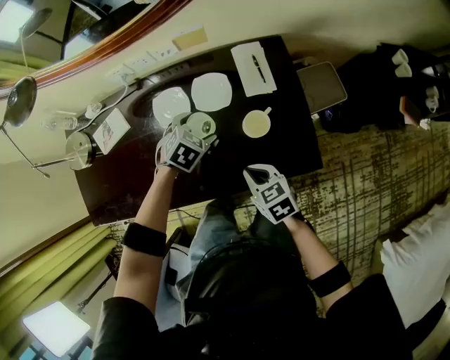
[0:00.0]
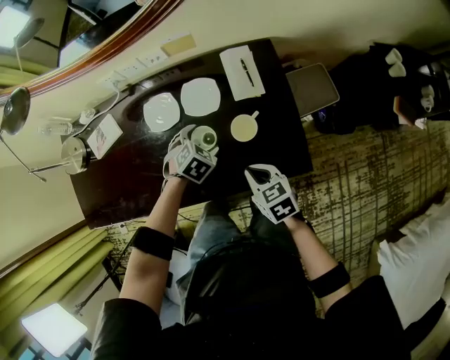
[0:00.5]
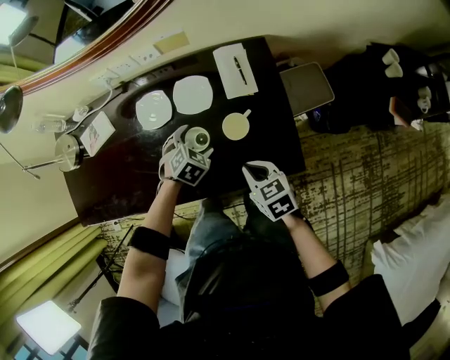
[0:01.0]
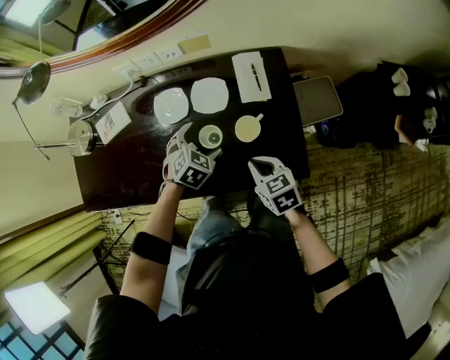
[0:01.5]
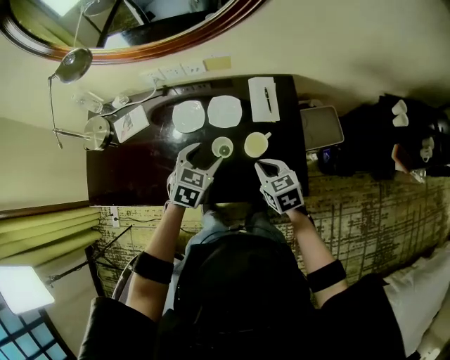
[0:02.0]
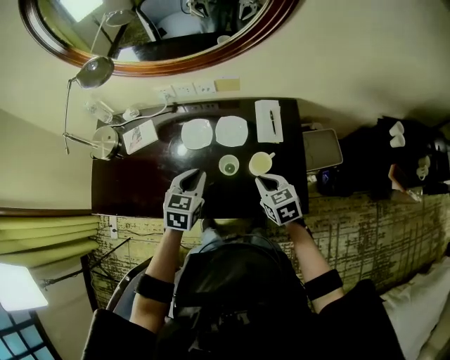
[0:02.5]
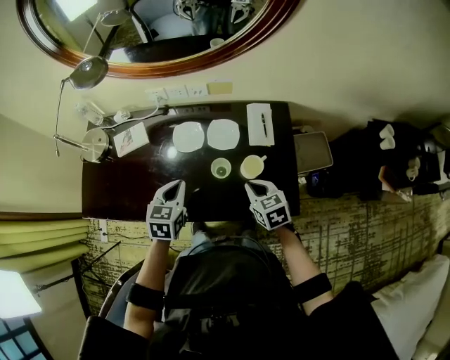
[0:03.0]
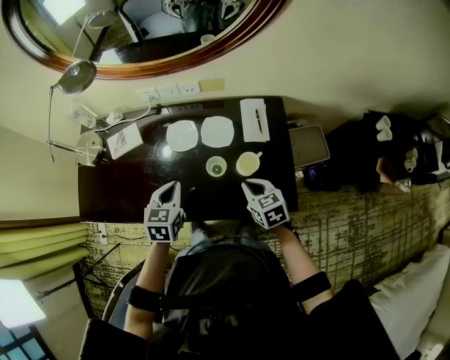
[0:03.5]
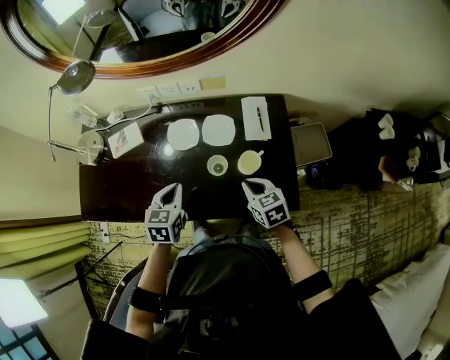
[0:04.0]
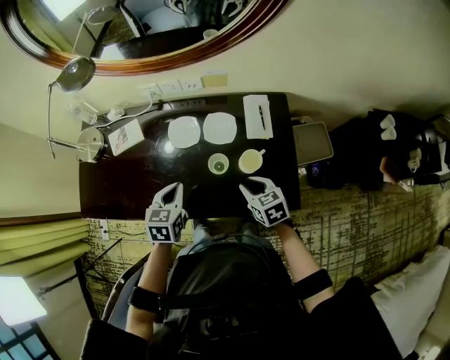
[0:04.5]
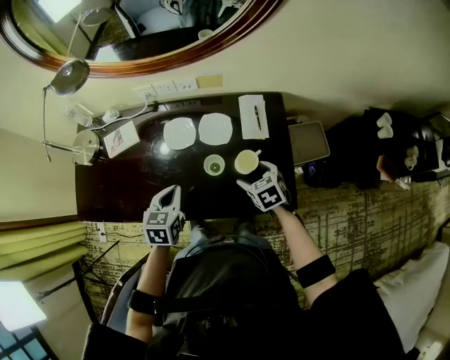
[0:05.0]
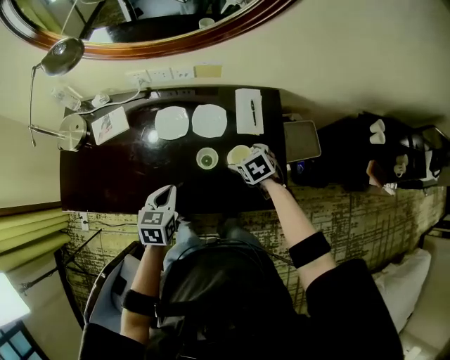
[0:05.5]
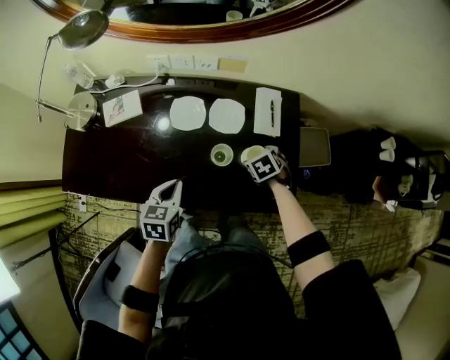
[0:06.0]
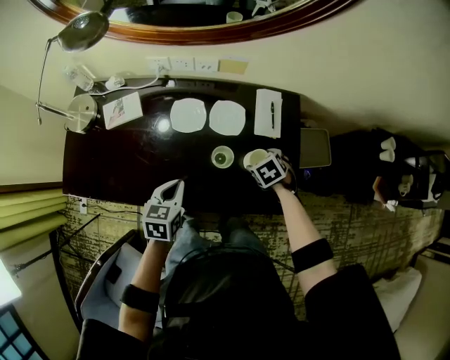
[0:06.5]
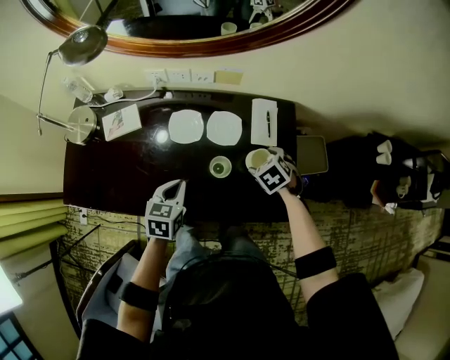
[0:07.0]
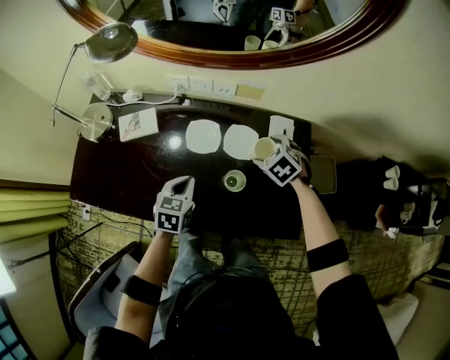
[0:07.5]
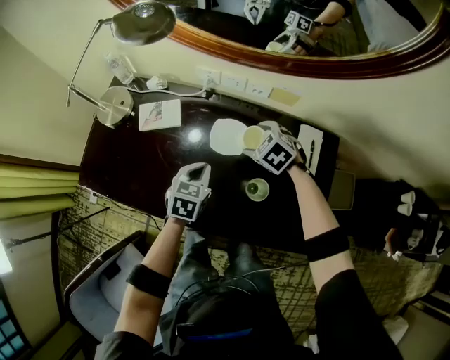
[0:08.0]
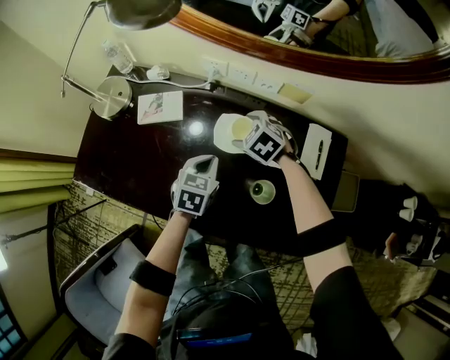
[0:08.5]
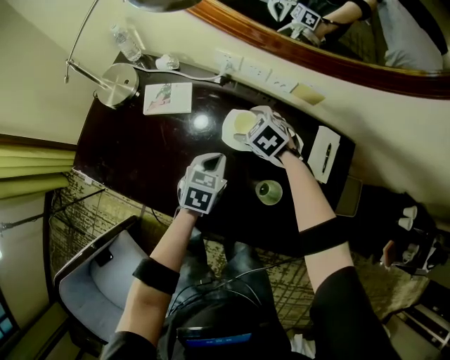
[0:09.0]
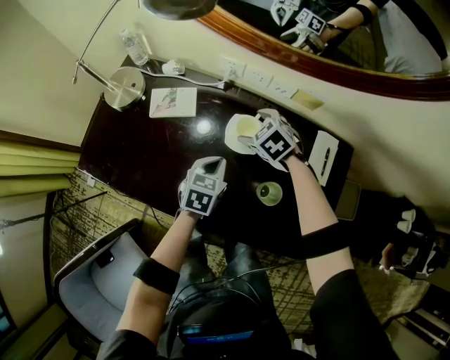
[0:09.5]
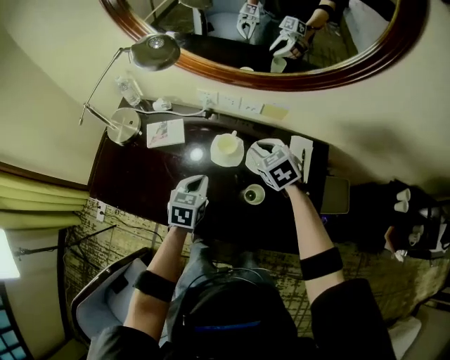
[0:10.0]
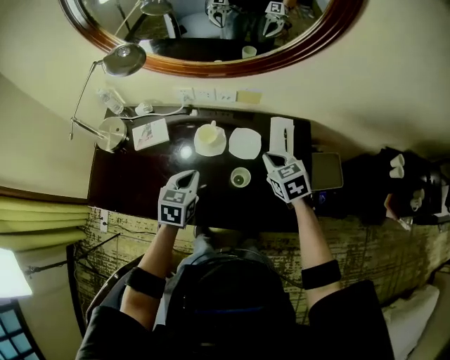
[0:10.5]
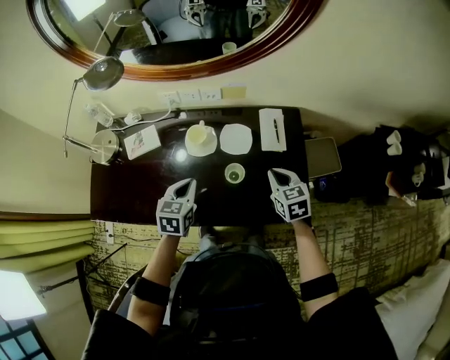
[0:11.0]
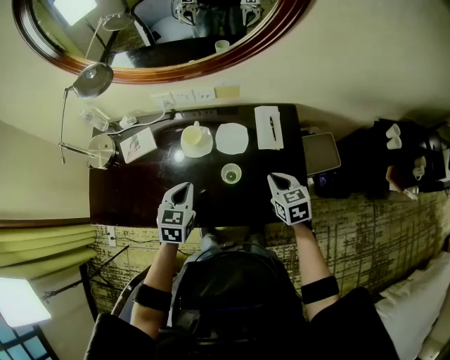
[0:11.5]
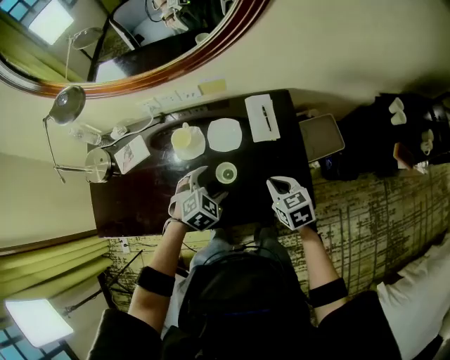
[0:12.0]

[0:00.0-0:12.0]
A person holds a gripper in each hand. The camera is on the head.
0:00.0 to 0:02.0: The right gripper goes some 10 cm to the right and upward; the left gripper travels upward and backward by about 15 cm, and turns by approximately 30 degrees.
0:02.0 to 0:04.0: The left gripper heads to the left, covering roughly 10 cm, turns by approximately 20 degrees, and closes its fingers.
0:04.0 to 0:06.0: The right gripper shifts about 10 cm downward, points its fingers some 30 degrees further downward, and opens its fingers. The left gripper ends up about 5 cm from where it was.
0:06.0 to 0:08.0: The left gripper shifts by some 15 cm; the right gripper changes place by about 25 cm, and rotates some 40 degrees.
0:08.0 to 0:10.0: The right gripper goes roughly 10 cm upward, swivels approximately 20 degrees, and closes. The left gripper moves about 5 cm.
0:10.0 to 0:12.0: The right gripper moves backward and to the right, some 25 cm, and turns by about 30 degrees. The left gripper heads to the right, covering some 15 cm, rolls clockwise, seen from behind, by about 50 degrees, and opens.

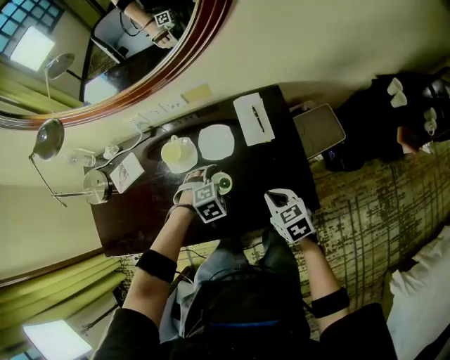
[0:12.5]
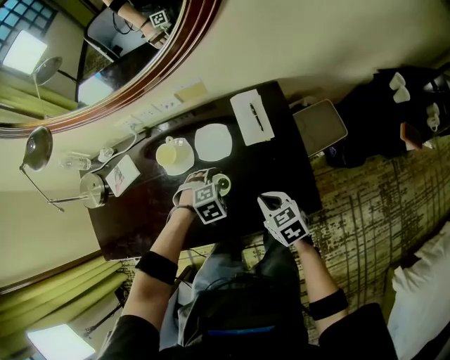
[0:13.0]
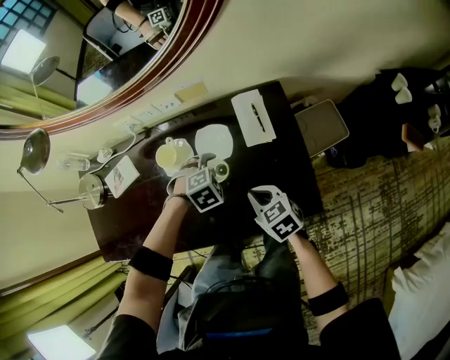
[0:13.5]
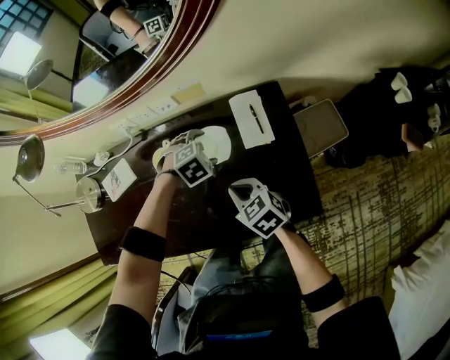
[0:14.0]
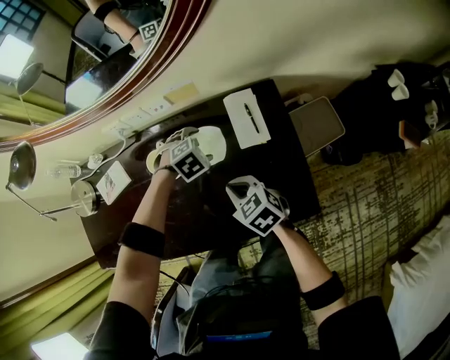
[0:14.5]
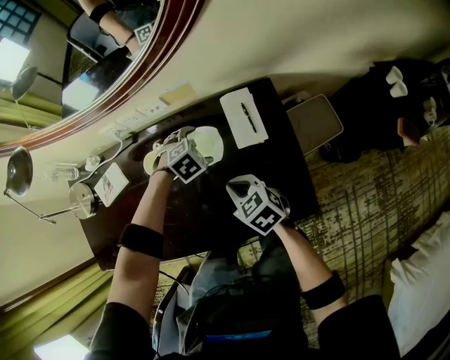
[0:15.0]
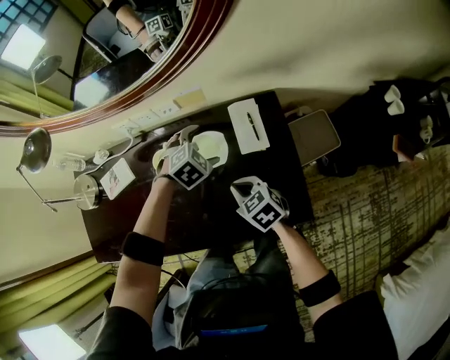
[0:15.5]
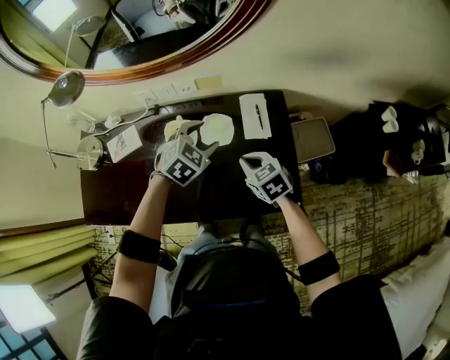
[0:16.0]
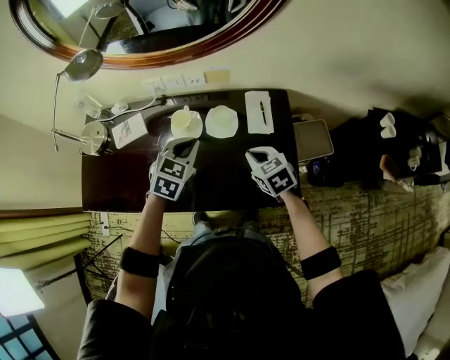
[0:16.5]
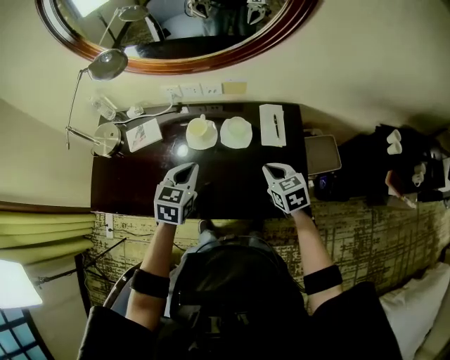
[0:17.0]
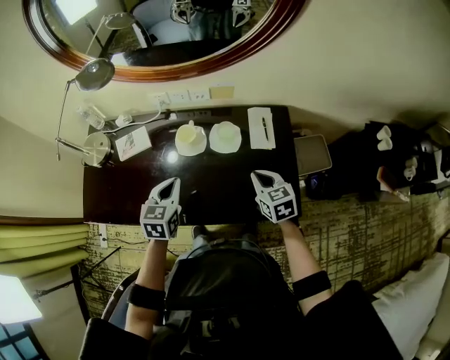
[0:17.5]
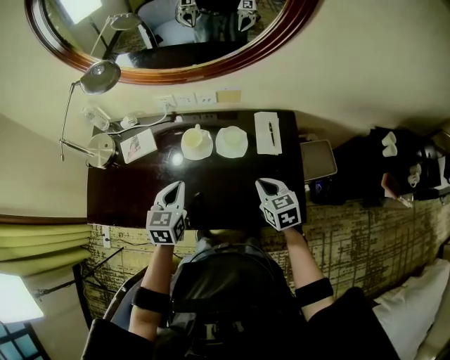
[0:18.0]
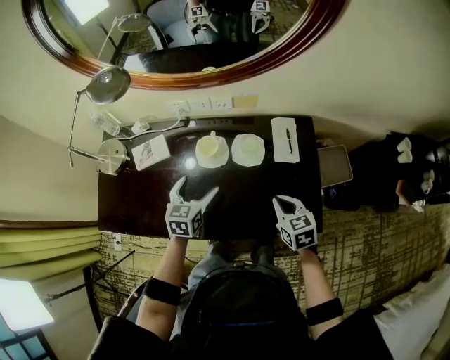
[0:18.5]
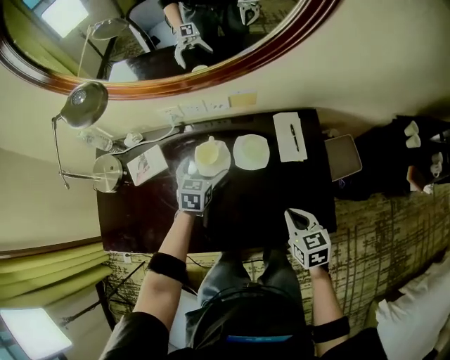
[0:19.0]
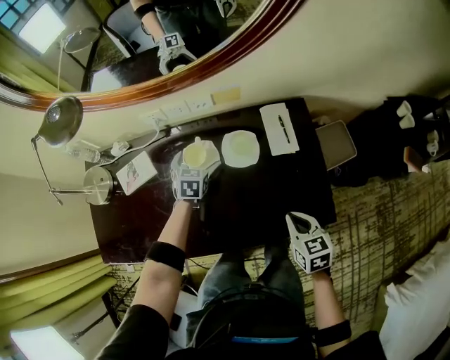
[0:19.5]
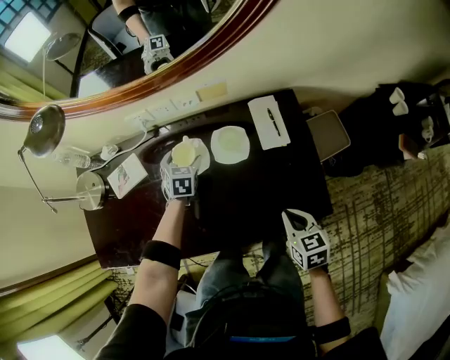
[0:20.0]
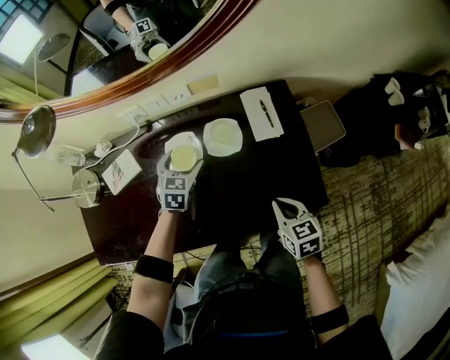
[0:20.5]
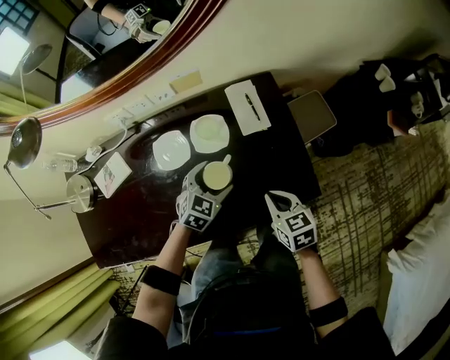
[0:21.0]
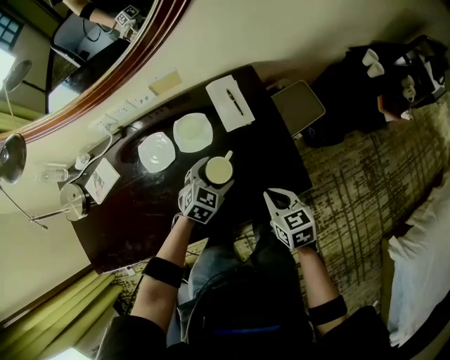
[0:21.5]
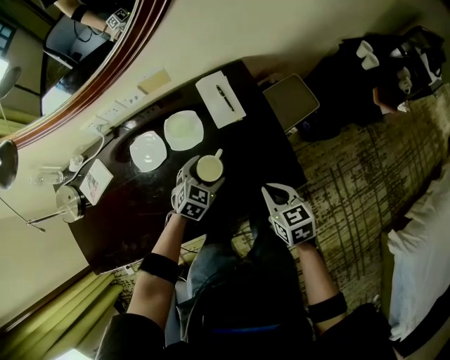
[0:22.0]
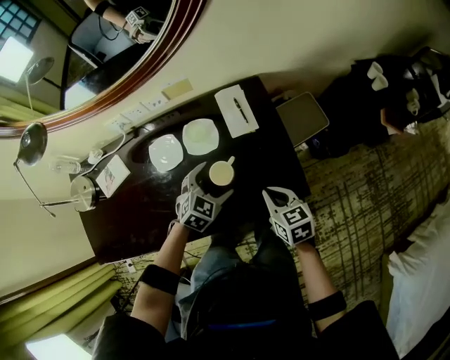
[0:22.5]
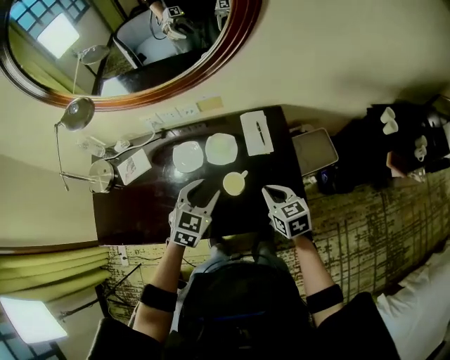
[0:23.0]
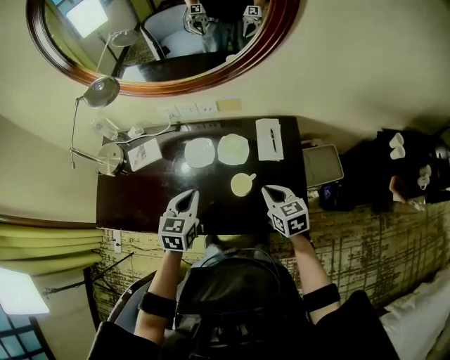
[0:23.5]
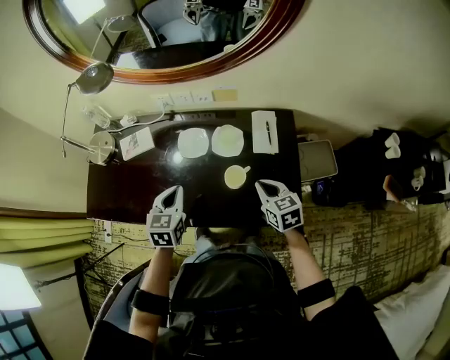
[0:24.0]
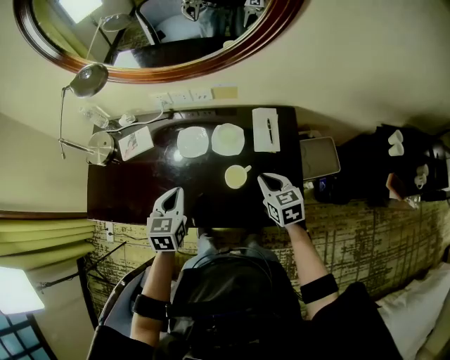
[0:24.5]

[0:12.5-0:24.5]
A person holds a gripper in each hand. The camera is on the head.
0:12.5 to 0:14.5: The left gripper shifts by about 15 cm, while the right gripper moves roughly 10 cm.
0:14.5 to 0:16.5: The left gripper goes some 25 cm upward and backward, points its fingers some 40 degrees further upward, and closes up. The right gripper is displaced upward by approximately 5 cm.
0:16.5 to 0:18.5: The left gripper heads to the left and downward, covering approximately 15 cm, changes its angle by some 30 degrees, and opens up.
0:18.5 to 0:20.5: The right gripper ends up some 5 cm from where it was. The left gripper is displaced forward, downward and to the right by roughly 15 cm, and turns by roughly 20 degrees.
0:20.5 to 0:22.5: The right gripper is displaced to the right by about 5 cm. The left gripper travels to the right and backward by some 20 cm, and swivels some 30 degrees.
0:22.5 to 0:24.5: The right gripper shifts by about 10 cm, while the left gripper shifts by roughly 20 cm, changes its angle by approximately 50 degrees, and closes.

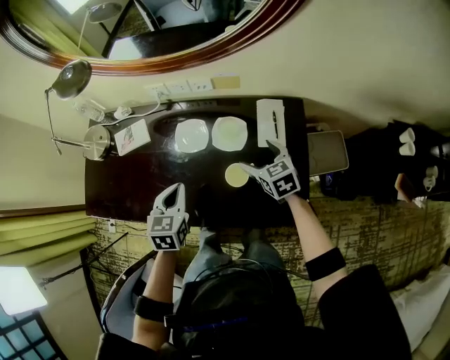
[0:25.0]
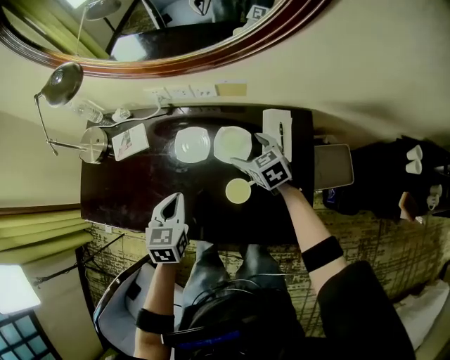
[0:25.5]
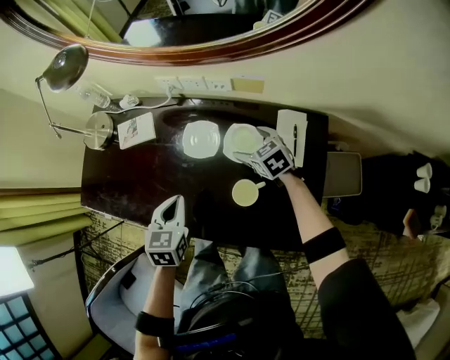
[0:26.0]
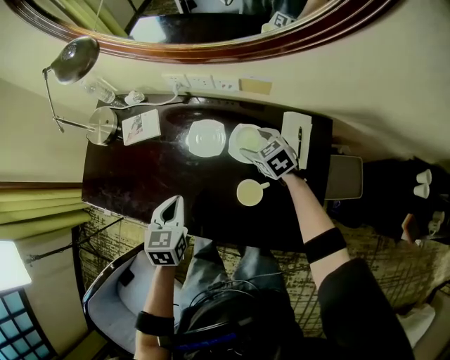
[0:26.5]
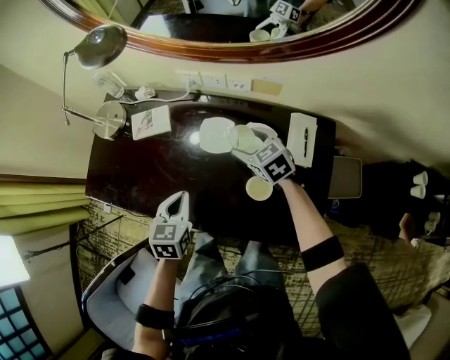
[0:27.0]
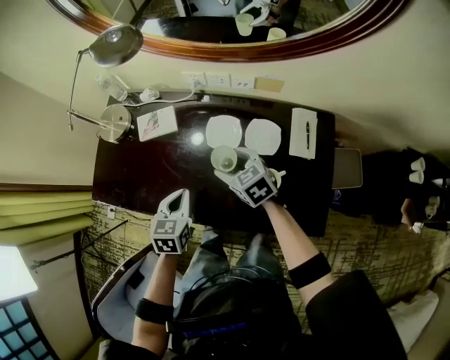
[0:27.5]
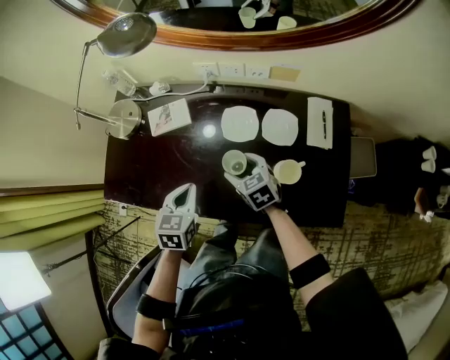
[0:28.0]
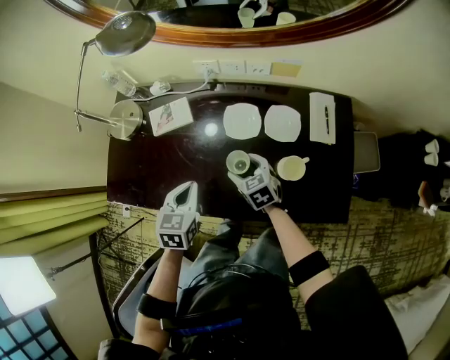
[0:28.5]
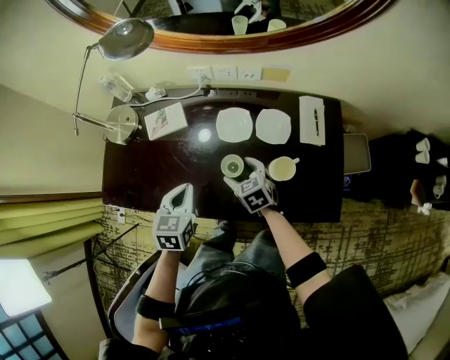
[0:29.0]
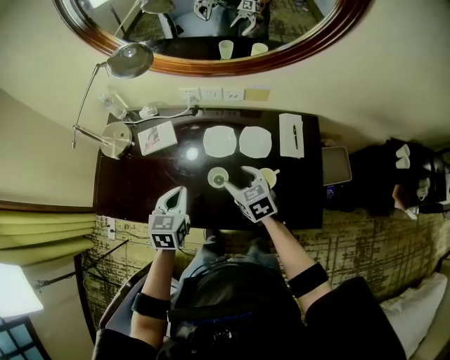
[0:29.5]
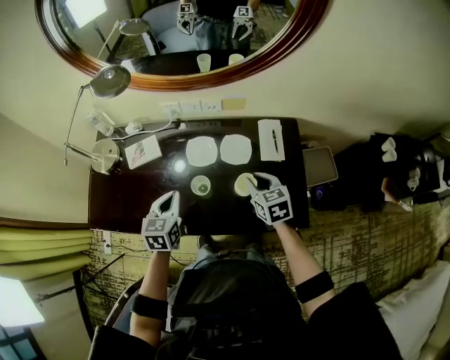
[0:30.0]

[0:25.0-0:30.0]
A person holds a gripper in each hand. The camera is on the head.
0:25.0 to 0:27.5: The right gripper heads to the left, covering some 20 cm. The left gripper moves to the left, approximately 10 cm.
0:27.5 to 0:30.0: The right gripper goes about 15 cm to the right and backward, turns by about 30 degrees, and closes up, while the left gripper goes roughly 5 cm upward.
